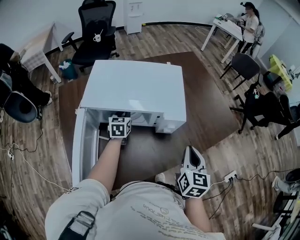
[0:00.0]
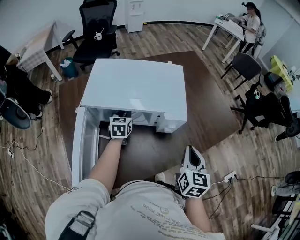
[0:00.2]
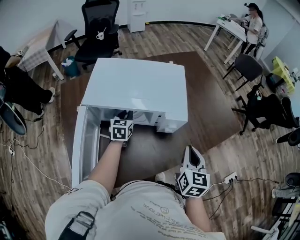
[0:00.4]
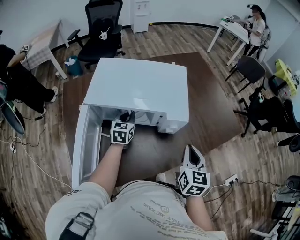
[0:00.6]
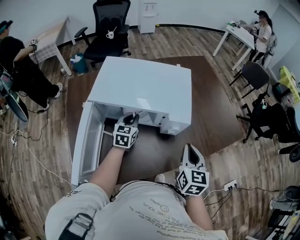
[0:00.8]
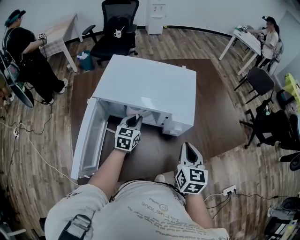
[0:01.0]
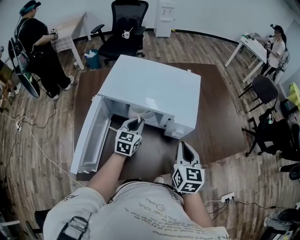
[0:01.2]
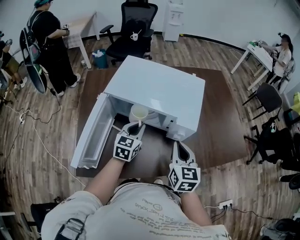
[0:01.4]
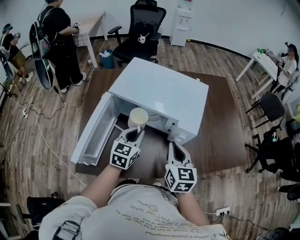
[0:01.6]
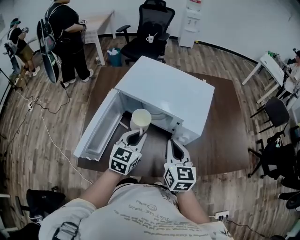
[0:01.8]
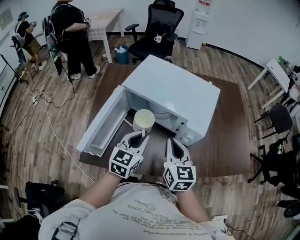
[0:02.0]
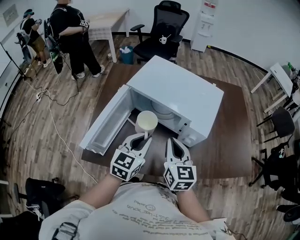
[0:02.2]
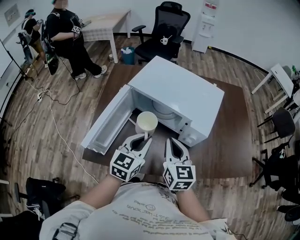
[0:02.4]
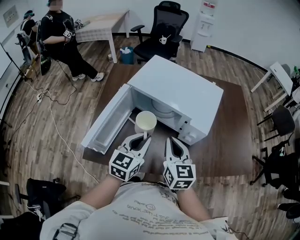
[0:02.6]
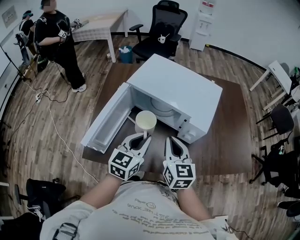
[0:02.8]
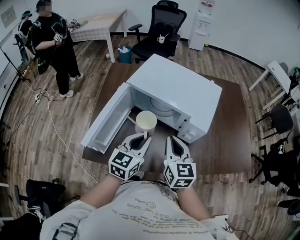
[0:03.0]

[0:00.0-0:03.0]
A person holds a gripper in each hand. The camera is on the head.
0.0 to 1.6 s: The left gripper is displaced backward and upward by roughly 20 cm; the right gripper shifts about 10 cm to the left, and changes its angle by approximately 30 degrees.
1.6 to 3.0 s: The left gripper moves backward and upward, about 10 cm; the right gripper is displaced to the left by approximately 5 cm.

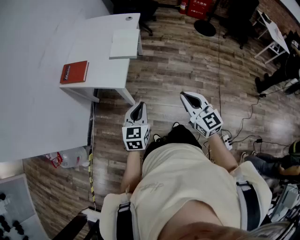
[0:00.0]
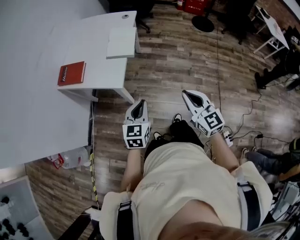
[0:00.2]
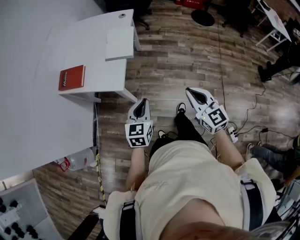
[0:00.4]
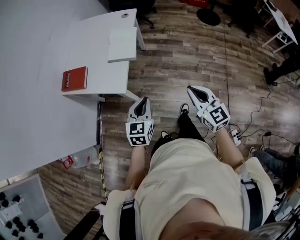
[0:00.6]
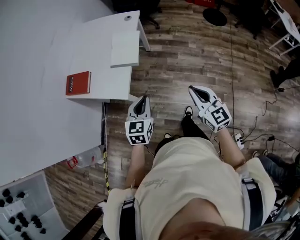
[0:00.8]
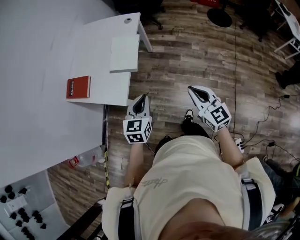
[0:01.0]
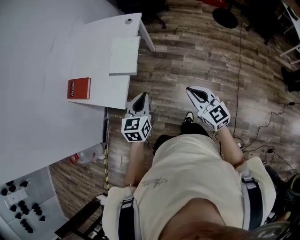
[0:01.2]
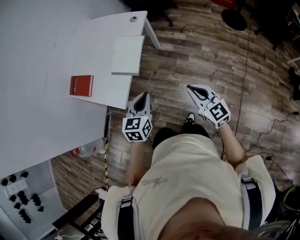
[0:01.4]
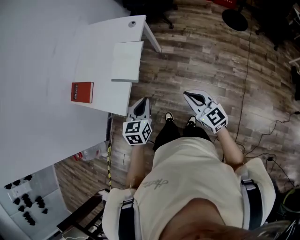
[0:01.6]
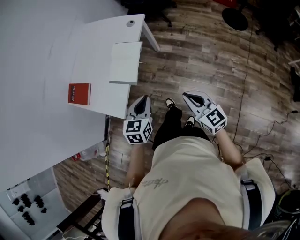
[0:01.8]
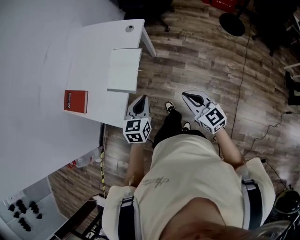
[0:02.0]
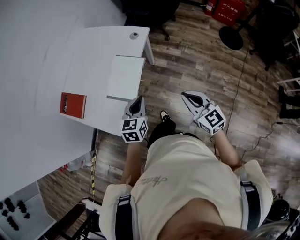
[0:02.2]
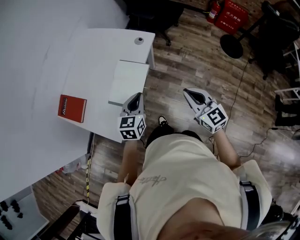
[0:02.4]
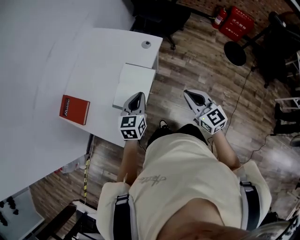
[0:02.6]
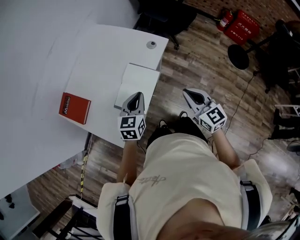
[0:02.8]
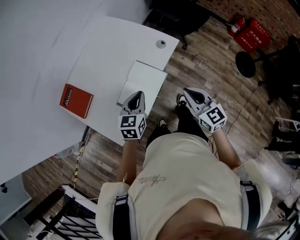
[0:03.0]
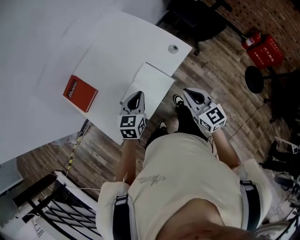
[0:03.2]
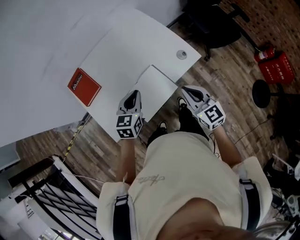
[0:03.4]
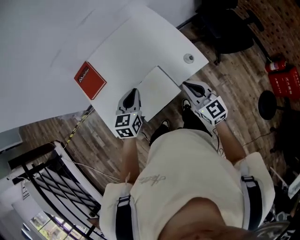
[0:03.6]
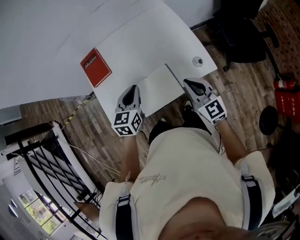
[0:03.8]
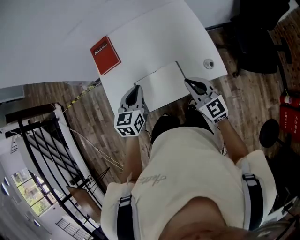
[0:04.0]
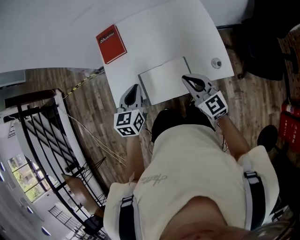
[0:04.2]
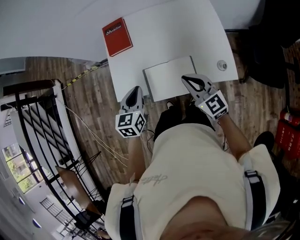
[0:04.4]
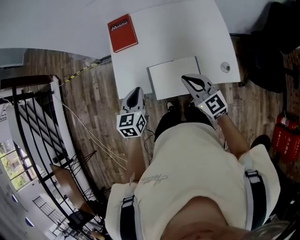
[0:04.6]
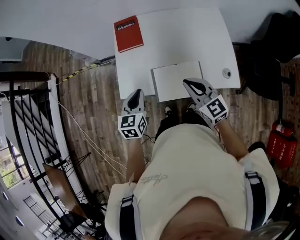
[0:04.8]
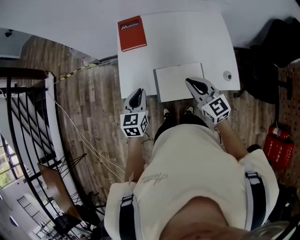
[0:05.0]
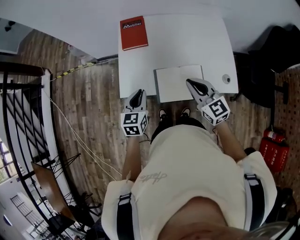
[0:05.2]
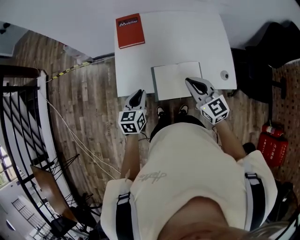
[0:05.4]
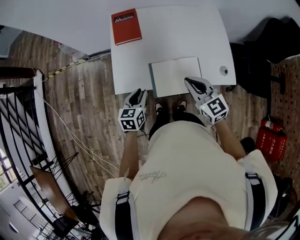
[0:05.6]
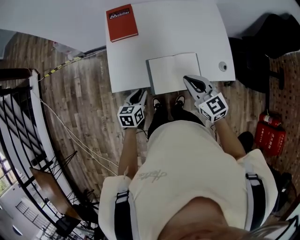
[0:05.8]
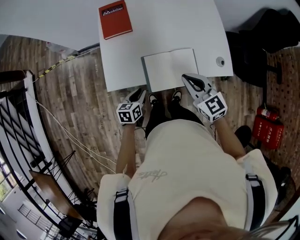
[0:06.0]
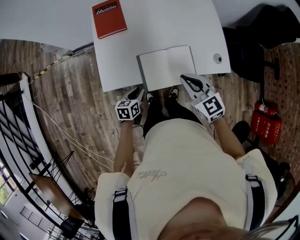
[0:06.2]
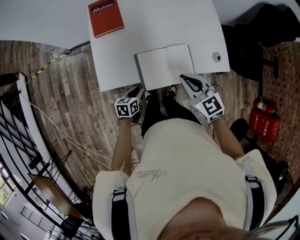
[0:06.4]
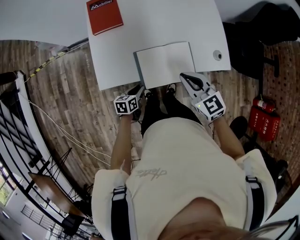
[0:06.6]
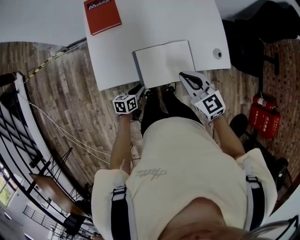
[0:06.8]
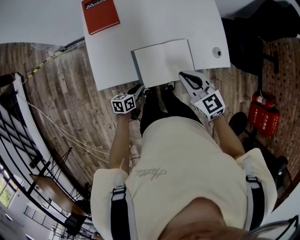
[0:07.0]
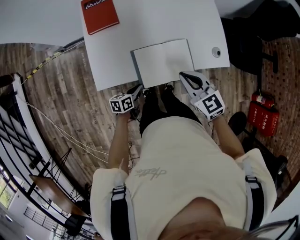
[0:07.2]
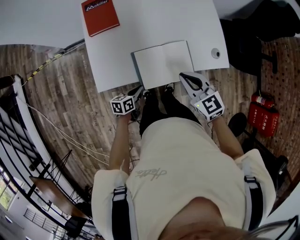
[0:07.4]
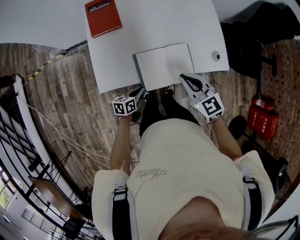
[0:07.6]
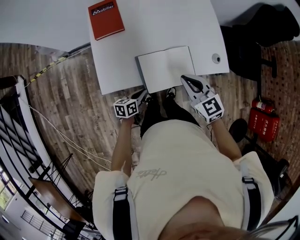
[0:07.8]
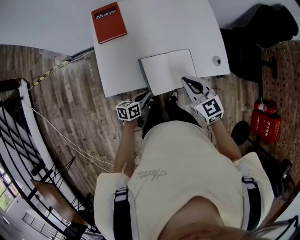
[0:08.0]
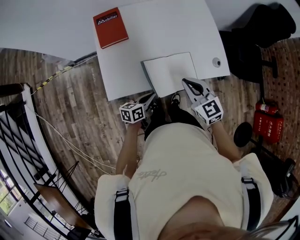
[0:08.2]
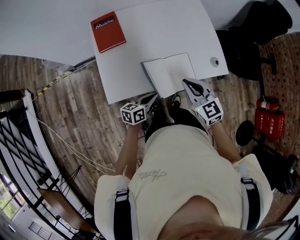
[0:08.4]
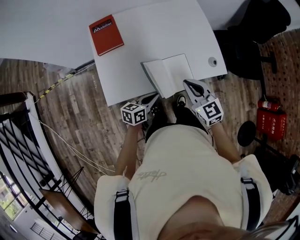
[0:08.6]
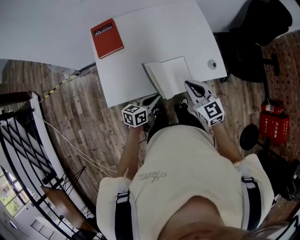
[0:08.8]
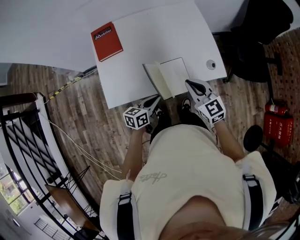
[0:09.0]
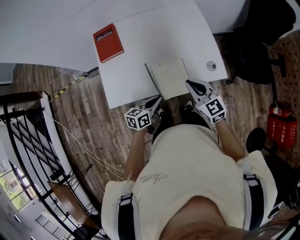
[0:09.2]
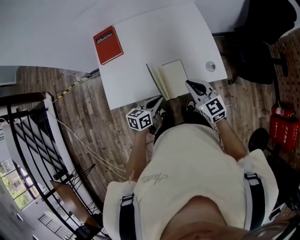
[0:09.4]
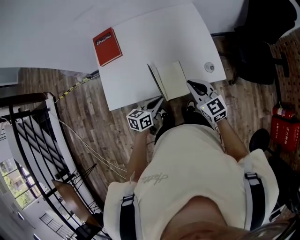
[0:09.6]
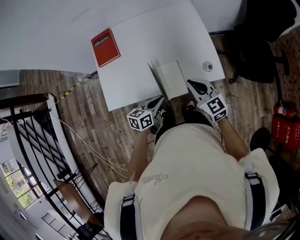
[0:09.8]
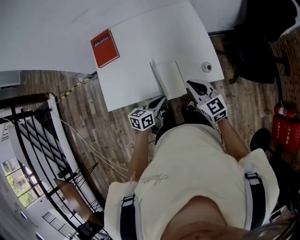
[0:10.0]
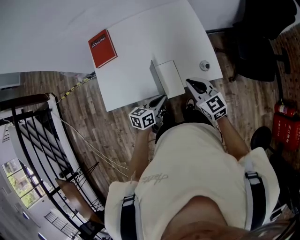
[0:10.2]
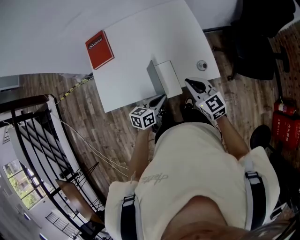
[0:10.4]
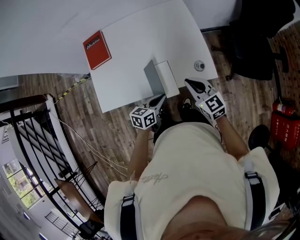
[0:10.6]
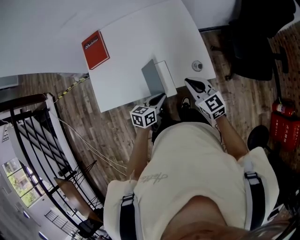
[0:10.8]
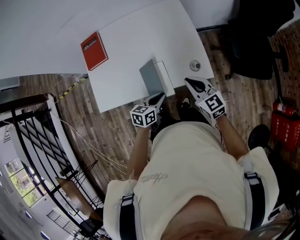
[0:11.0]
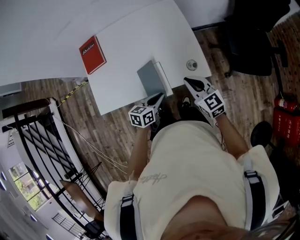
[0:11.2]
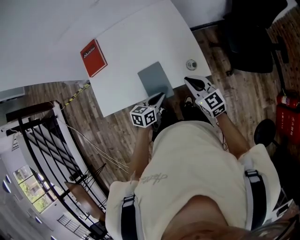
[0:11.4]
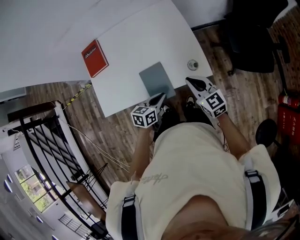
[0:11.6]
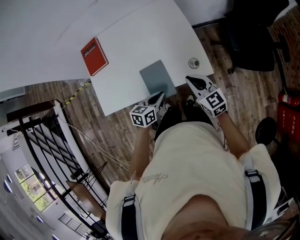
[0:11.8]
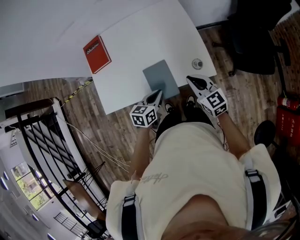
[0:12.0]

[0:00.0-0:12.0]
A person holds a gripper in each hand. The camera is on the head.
0.0 to 1.6 s: Both grippers travel together forward and to the right, about 30 cm.
1.6 to 3.0 s: The two grippers go some 30 cm forward.
3.0 to 4.4 s: The left gripper changes place by roughly 10 cm, and rotates about 60 degrees. The right gripper moves about 20 cm, and changes its angle by some 60 degrees.
4.4 to 6.0 s: The right gripper heads to the left, covering some 5 cm, while the left gripper heads downward, covering approximately 20 cm, and swivels roughly 30 degrees.
6.0 to 7.6 s: The left gripper moves downward, roughly 5 cm.
7.6 to 9.0 s: The right gripper moves to the right, some 5 cm. The left gripper shifts roughly 15 cm upward and to the right.
9.0 to 10.4 s: The two grippers go approximately 10 cm to the right.

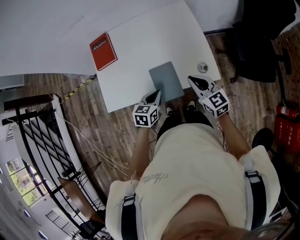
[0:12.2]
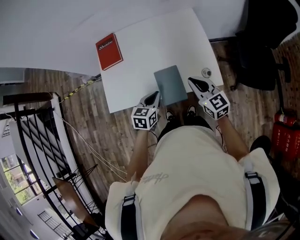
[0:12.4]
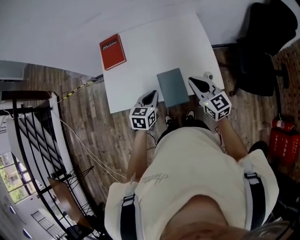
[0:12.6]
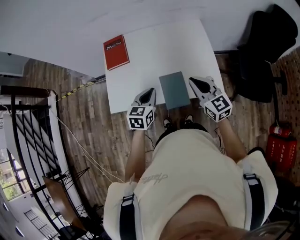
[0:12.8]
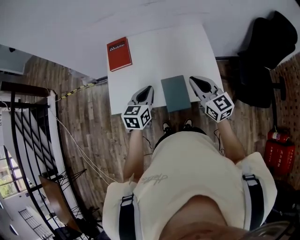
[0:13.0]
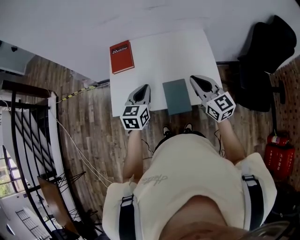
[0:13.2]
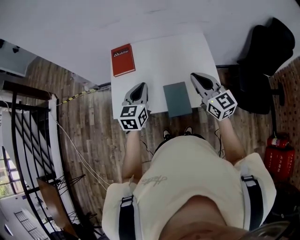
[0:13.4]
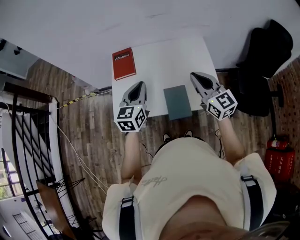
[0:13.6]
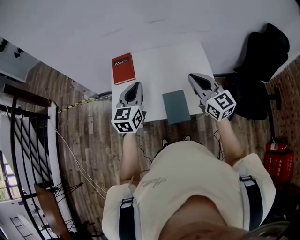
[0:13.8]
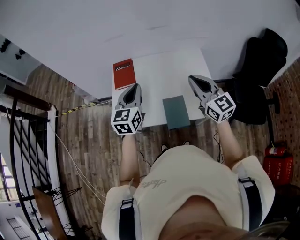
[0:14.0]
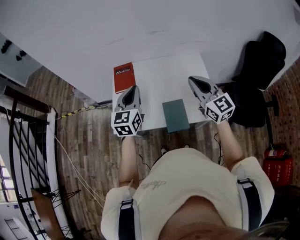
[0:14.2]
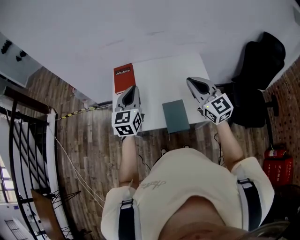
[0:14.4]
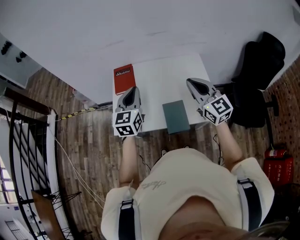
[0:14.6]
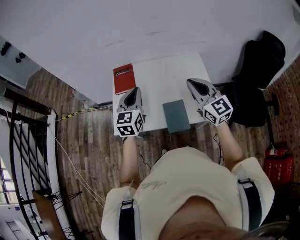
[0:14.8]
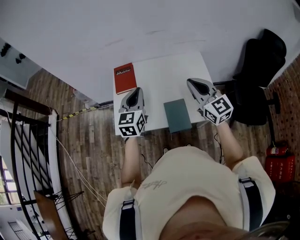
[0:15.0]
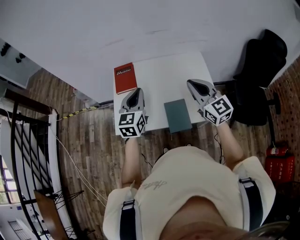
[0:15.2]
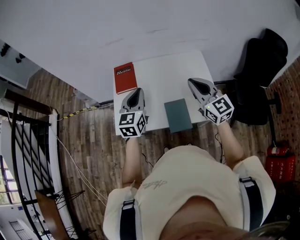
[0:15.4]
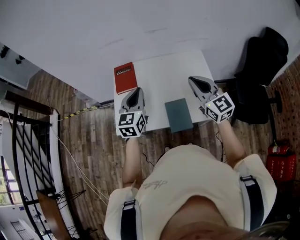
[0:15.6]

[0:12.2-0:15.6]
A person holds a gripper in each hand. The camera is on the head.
12.2 to 13.8 s: The left gripper moves upward and to the left, approximately 25 cm, and changes its angle by about 40 degrees, while the right gripper travels upward by some 20 cm.
13.8 to 15.6 s: The grippers stay close to where they were, moving slightly.

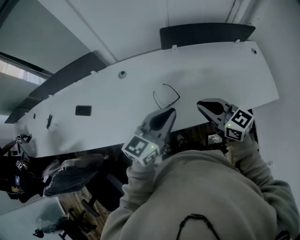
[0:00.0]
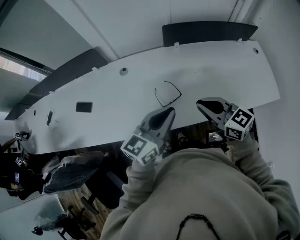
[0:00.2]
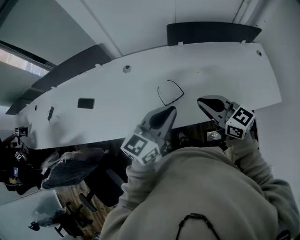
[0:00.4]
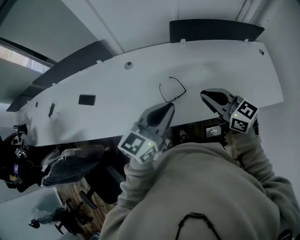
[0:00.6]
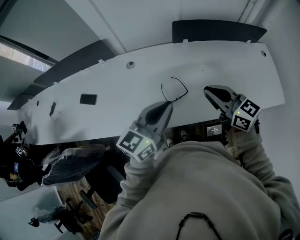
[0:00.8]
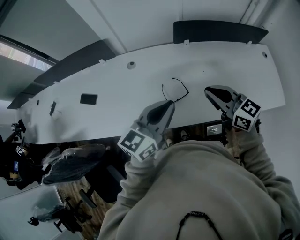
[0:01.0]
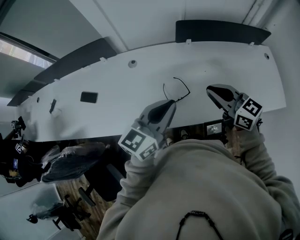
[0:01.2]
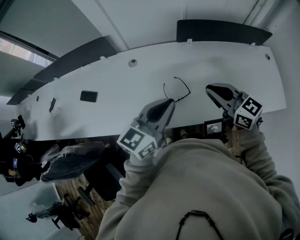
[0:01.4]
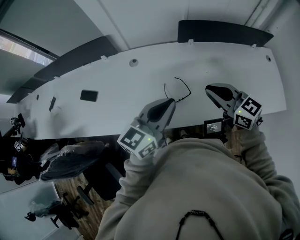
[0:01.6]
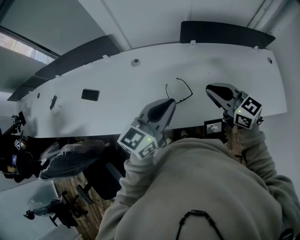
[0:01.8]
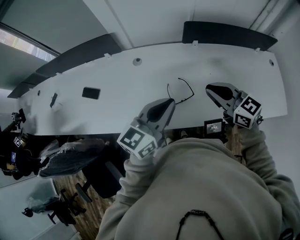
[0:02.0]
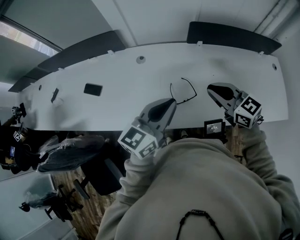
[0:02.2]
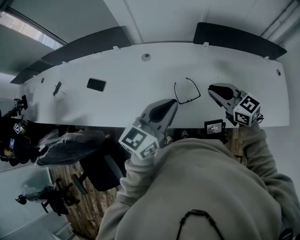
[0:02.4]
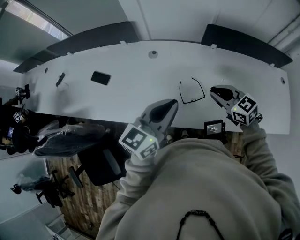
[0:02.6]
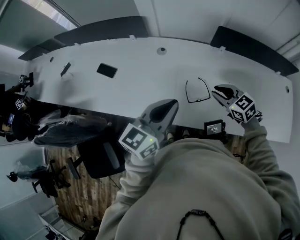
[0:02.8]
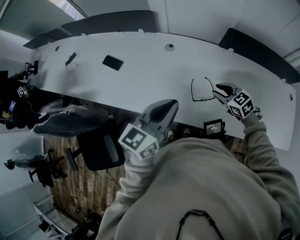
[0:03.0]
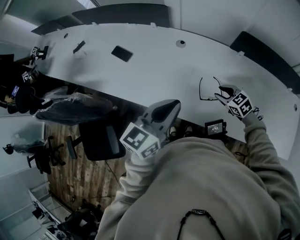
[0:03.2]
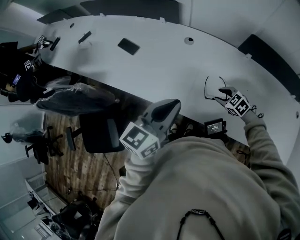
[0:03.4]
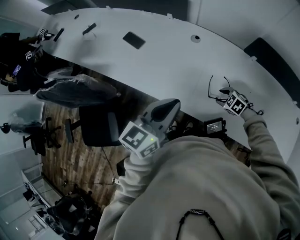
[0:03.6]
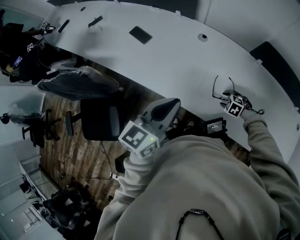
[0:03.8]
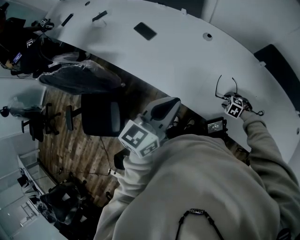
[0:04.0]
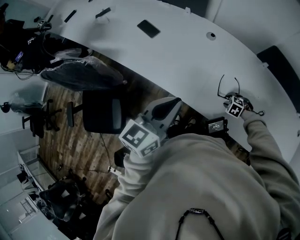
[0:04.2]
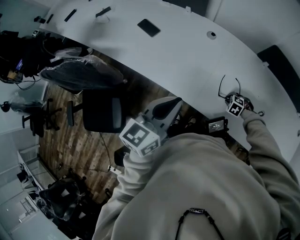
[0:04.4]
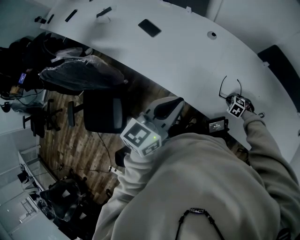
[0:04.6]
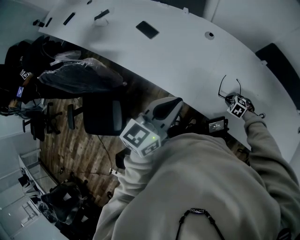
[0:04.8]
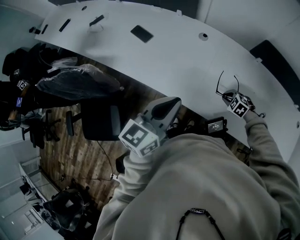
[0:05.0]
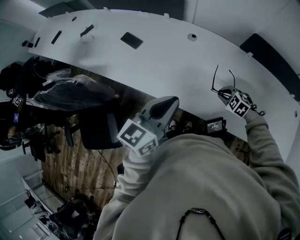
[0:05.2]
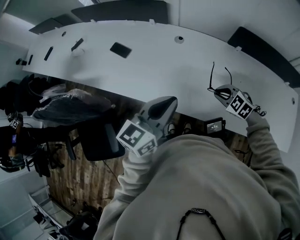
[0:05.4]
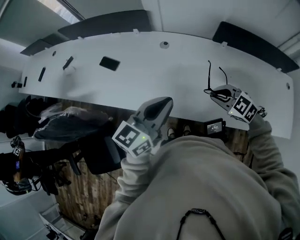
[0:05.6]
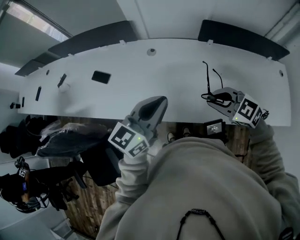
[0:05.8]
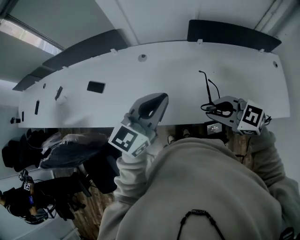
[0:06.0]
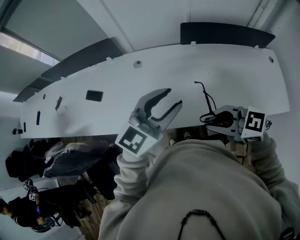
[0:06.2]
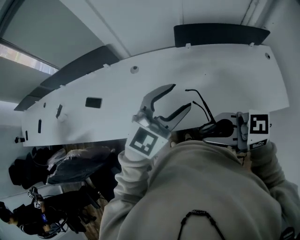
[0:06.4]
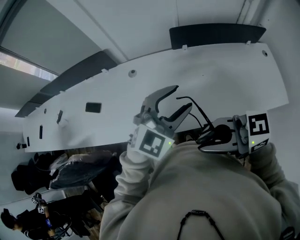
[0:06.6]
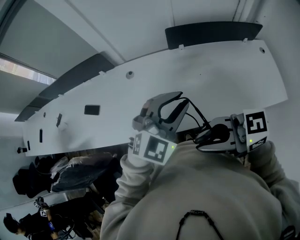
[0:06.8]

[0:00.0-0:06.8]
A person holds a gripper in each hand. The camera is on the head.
0.0 to 1.4 s: The right gripper shifts roughly 5 cm forward, while the left gripper moves roughly 5 cm.
1.4 to 2.8 s: The left gripper heads to the left, covering about 10 cm. Meanwhile the right gripper goes roughly 15 cm downward and forward, and rotates roughly 30 degrees.
2.8 to 4.0 s: The right gripper goes roughly 25 cm downward, points its fingers some 40 degrees further downward, and opens. The left gripper moves approximately 15 cm, and turns by some 20 degrees.
4.0 to 5.4 s: The right gripper travels upward by some 20 cm, rotates roughly 30 degrees, and closes up; the left gripper moves approximately 5 cm.
5.4 to 6.8 s: The right gripper travels upward by approximately 30 cm, and tips its fingers upward by roughly 50 degrees; the left gripper moves about 25 cm, twists roughly 50 degrees clockwise, seen from behind, and opens its fingers.
